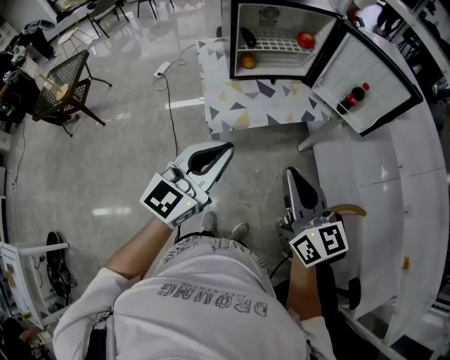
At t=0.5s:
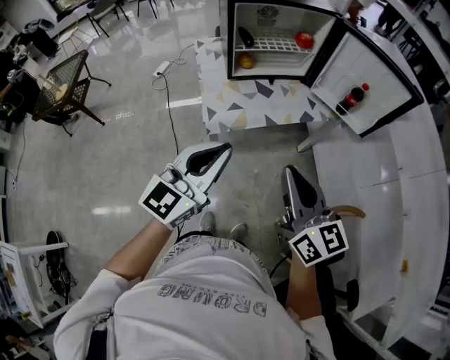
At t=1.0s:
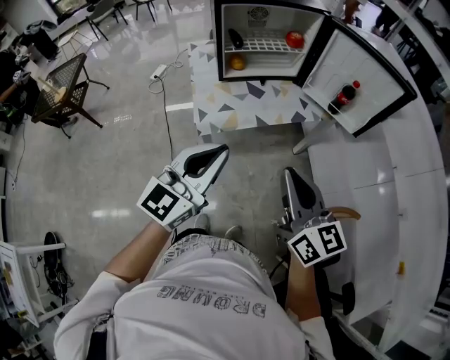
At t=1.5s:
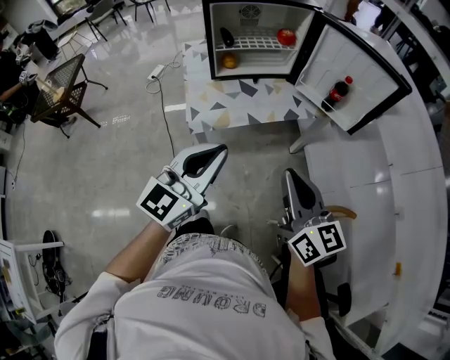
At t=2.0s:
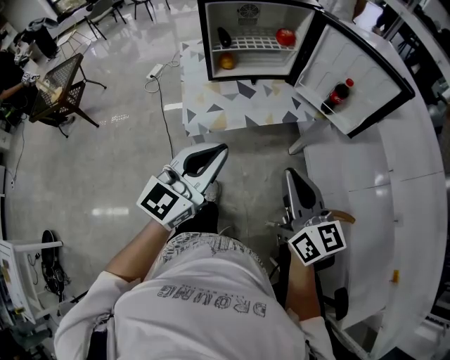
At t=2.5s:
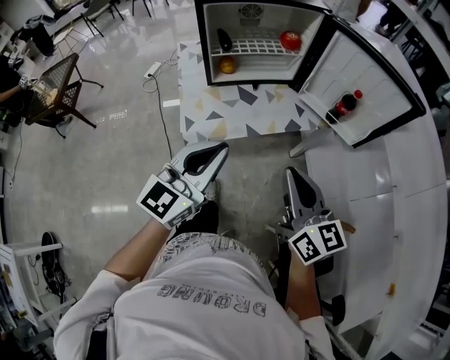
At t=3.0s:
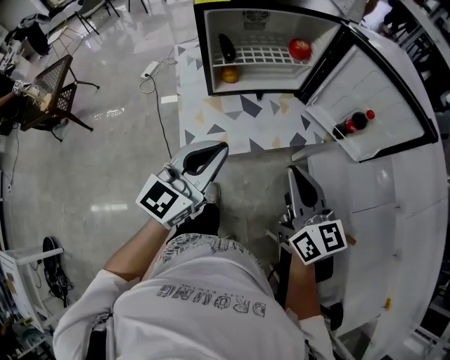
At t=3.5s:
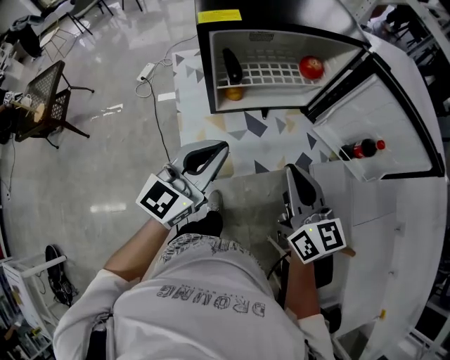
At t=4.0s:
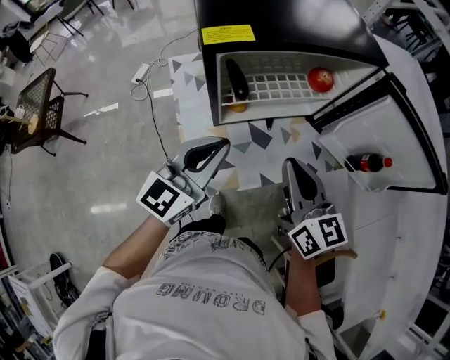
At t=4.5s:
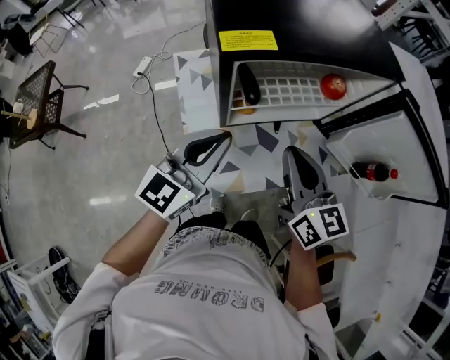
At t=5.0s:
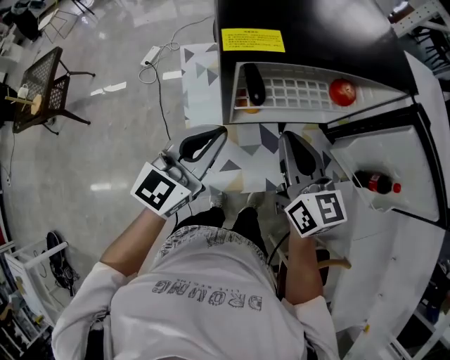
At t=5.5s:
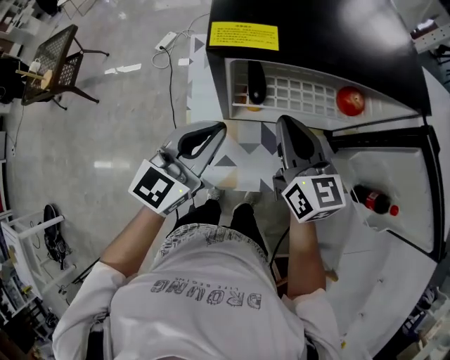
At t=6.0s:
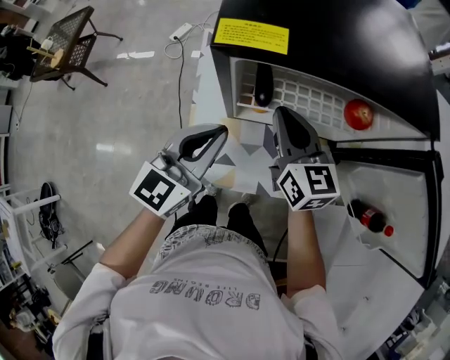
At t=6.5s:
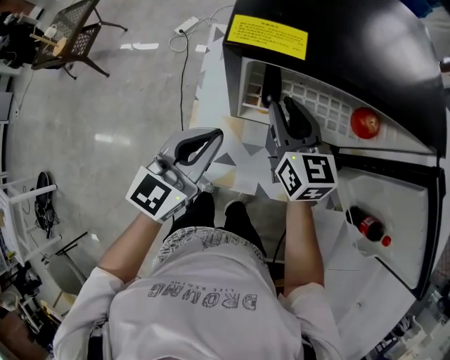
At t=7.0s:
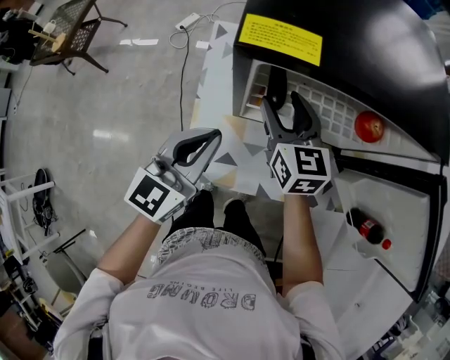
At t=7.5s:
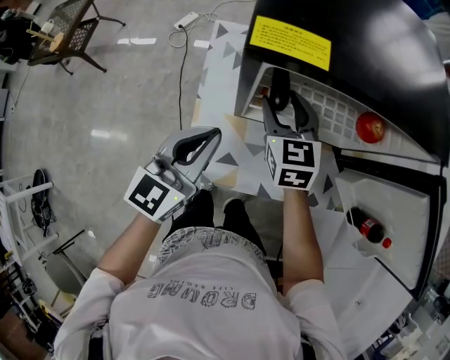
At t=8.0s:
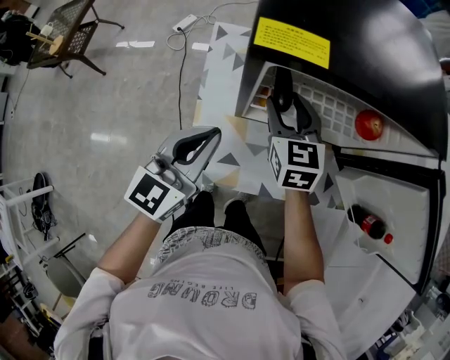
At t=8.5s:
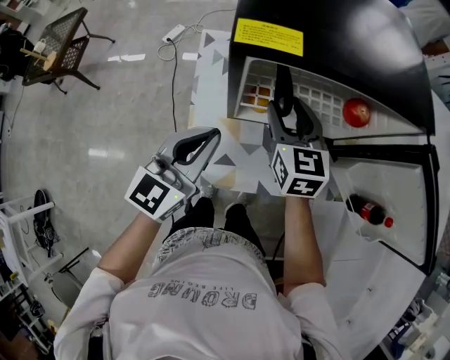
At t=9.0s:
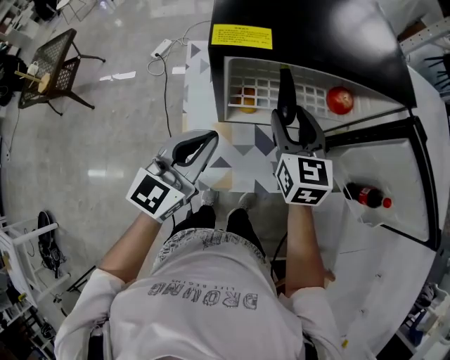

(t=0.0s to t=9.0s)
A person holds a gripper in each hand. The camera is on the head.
t=0.0s - t=2.0s: The two grippers go roughly 10 cm to the right.
t=2.0s - t=4.5s: The two grippers go roughly 40 cm forward and to the left.
t=4.5s - t=7.0s: The right gripper goes about 20 cm forward, downward and to the left, turns by about 20 degrees, and opens up, while the left gripper shifts some 5 cm downward, and changes its angle by roughly 20 degrees.
t=7.0s - t=9.0s: The right gripper goes roughly 5 cm to the right.

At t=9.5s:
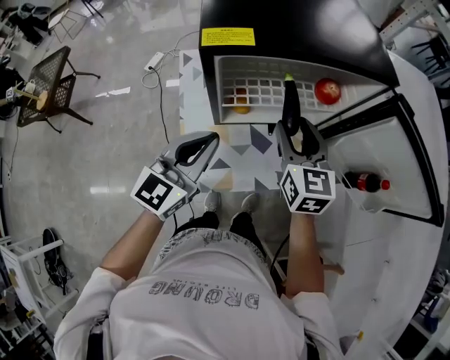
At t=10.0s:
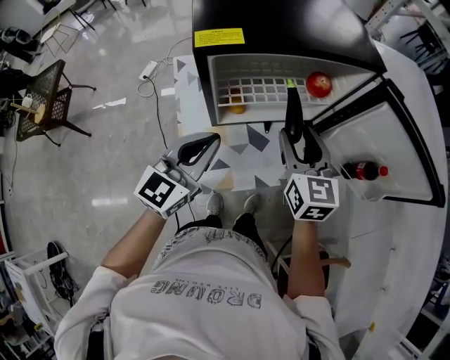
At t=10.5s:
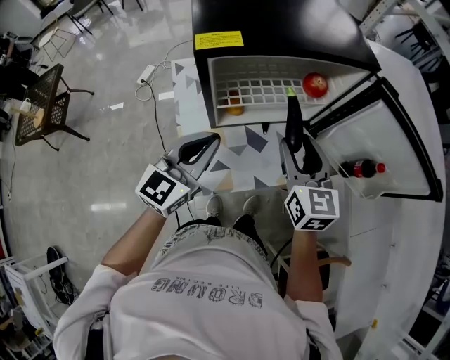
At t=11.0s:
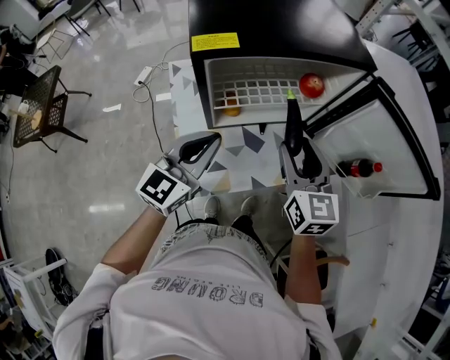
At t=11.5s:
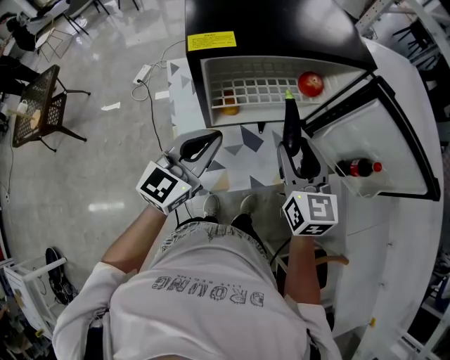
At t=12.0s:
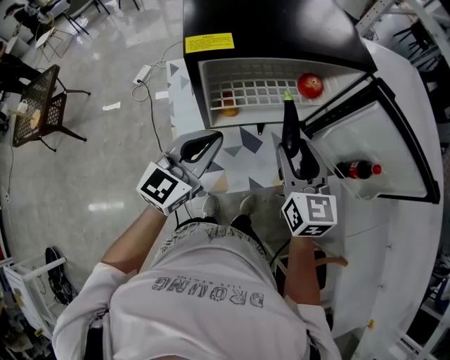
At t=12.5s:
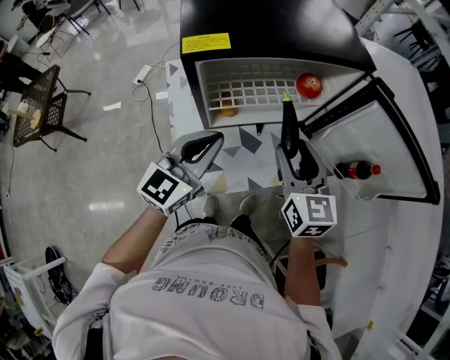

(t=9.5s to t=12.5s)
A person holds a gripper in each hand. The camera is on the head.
t=9.5s - t=11.0s: The right gripper moves backward, roughly 5 cm.
t=11.0s - t=12.5s: The grippers make only small movements.

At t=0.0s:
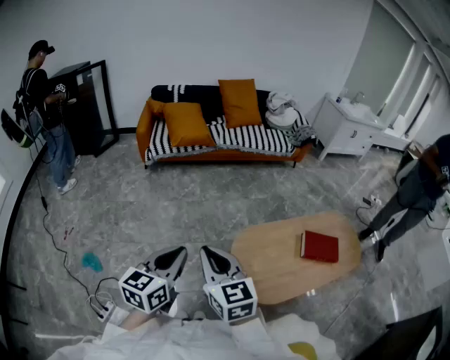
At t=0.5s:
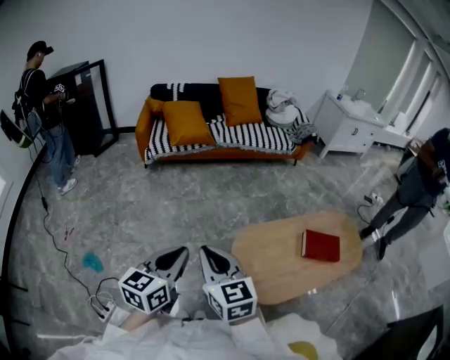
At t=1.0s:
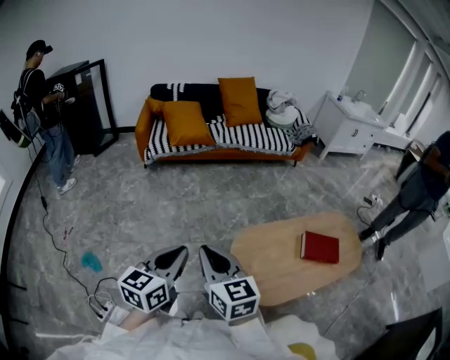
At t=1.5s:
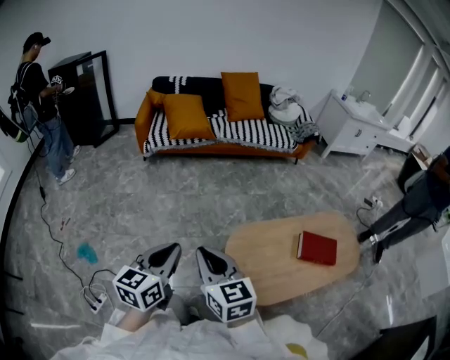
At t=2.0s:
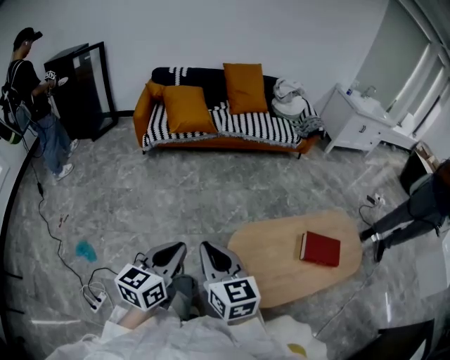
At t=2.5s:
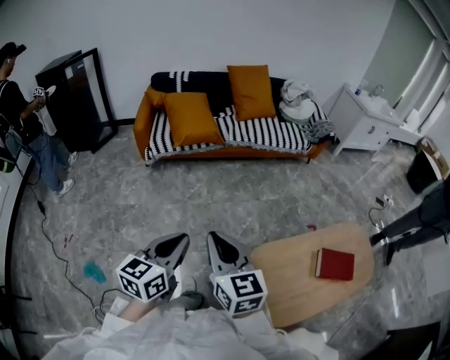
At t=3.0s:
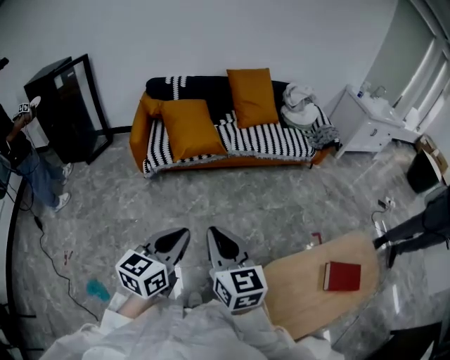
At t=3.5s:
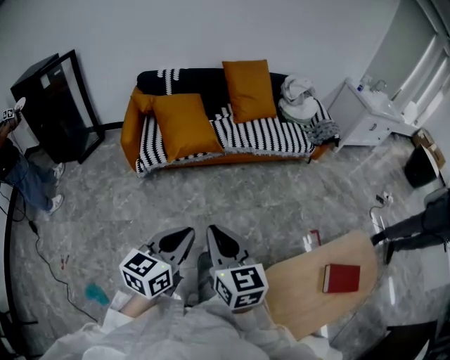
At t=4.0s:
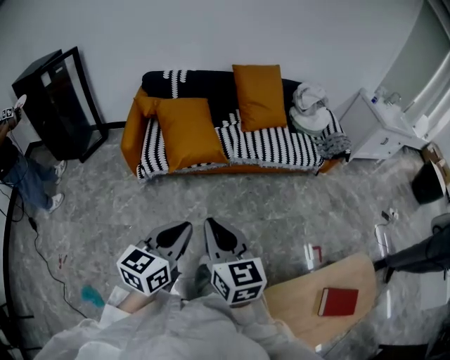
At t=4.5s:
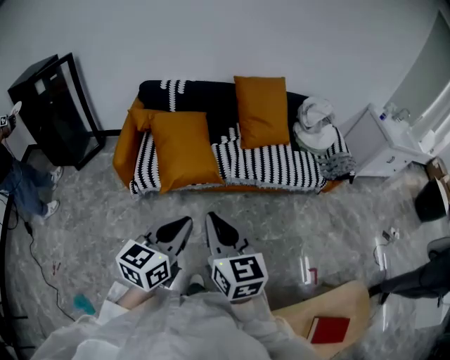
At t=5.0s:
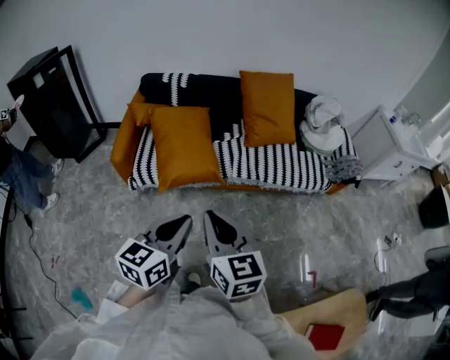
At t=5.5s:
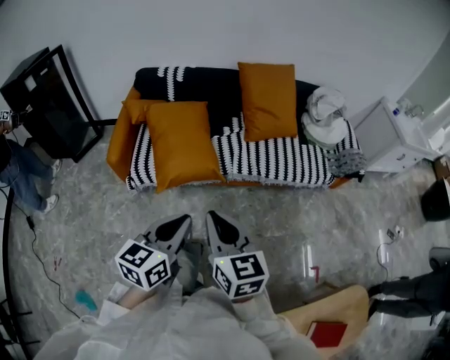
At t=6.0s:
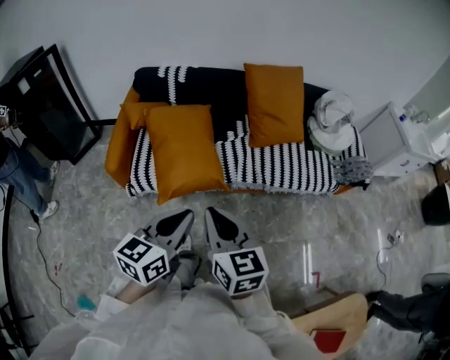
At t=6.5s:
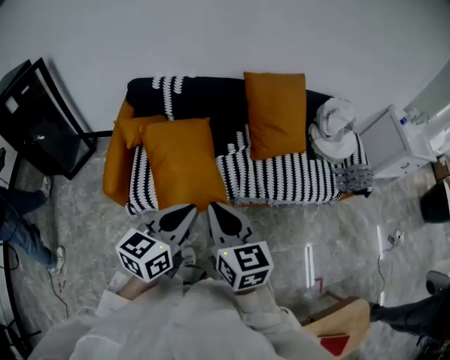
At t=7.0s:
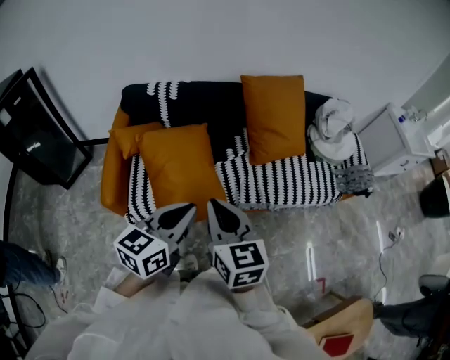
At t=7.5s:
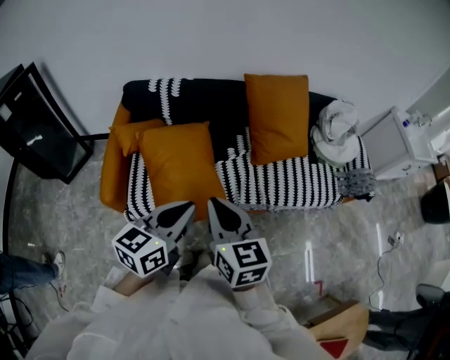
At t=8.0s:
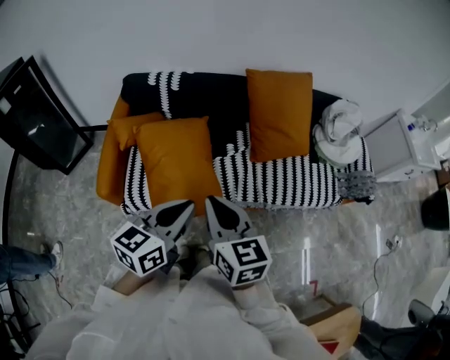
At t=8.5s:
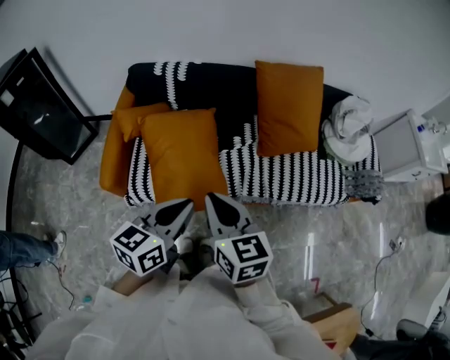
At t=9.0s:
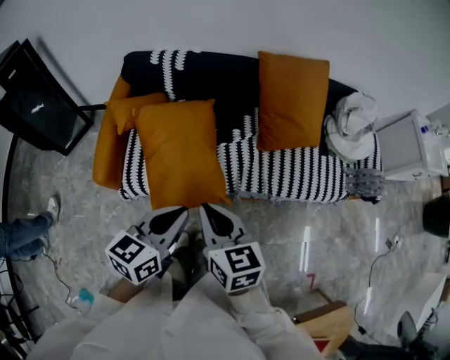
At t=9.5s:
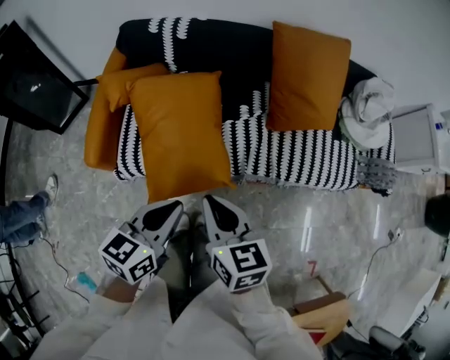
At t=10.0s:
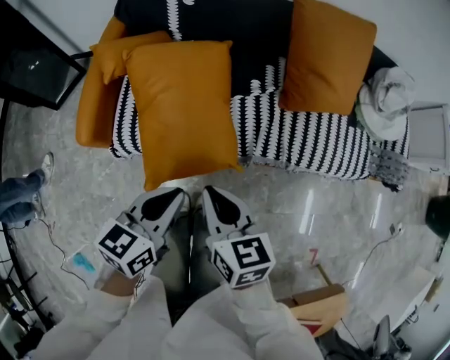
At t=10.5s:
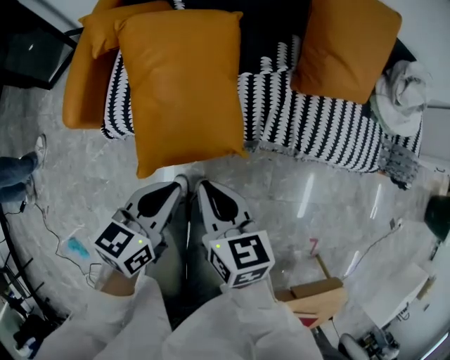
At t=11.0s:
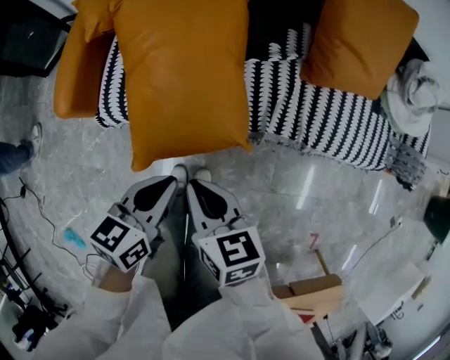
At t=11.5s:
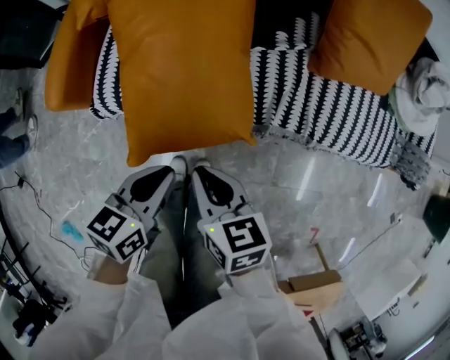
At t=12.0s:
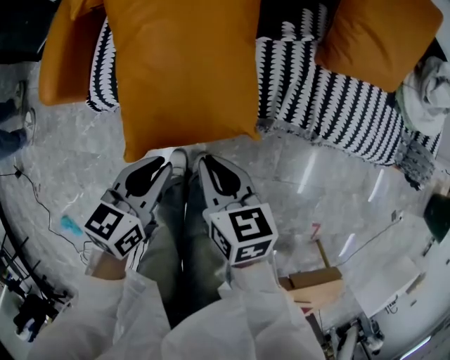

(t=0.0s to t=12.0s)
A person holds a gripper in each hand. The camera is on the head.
t=0.0s - t=2.0s: The grippers both shift forward by some 5 cm.
t=2.0s - t=4.0s: The two grippers travel together, forward, some 50 cm.
t=4.0s - t=6.0s: Both grippers move forward, approximately 30 cm.
t=6.0s - t=8.0s: The grippers both shift forward by some 20 cm.
t=8.0s - t=10.0s: Both grippers travel together downward, roughly 20 cm.
t=10.0s - t=12.0s: Both grippers move downward, some 20 cm.

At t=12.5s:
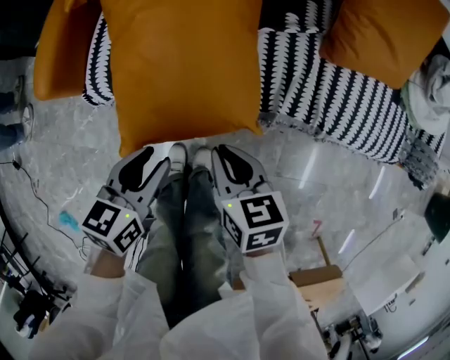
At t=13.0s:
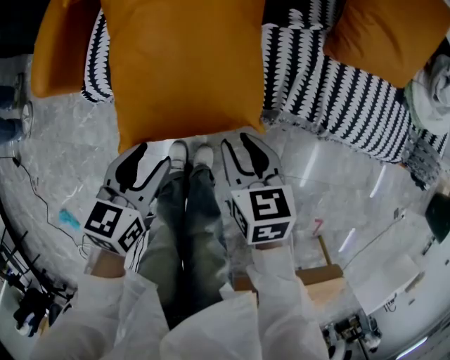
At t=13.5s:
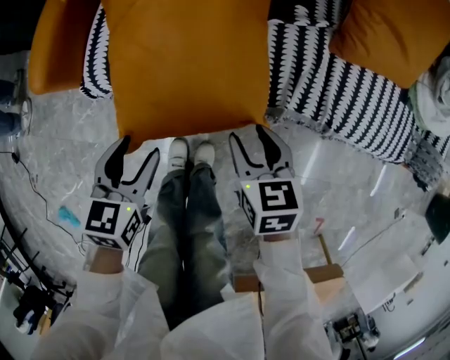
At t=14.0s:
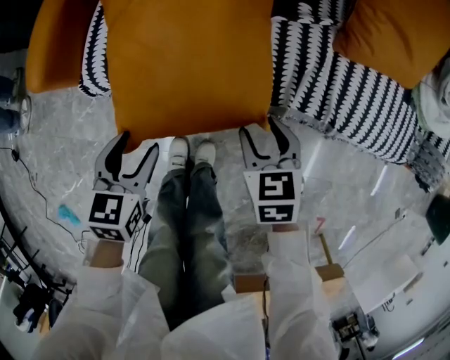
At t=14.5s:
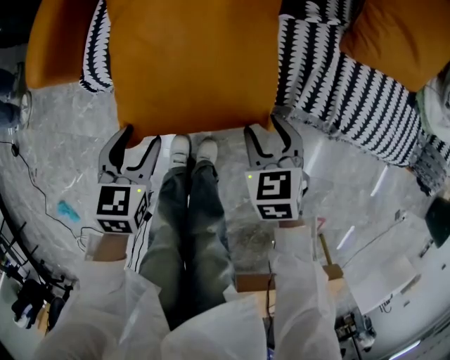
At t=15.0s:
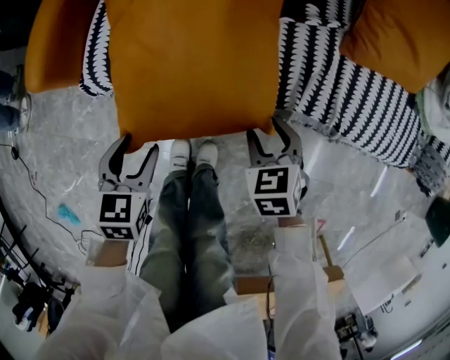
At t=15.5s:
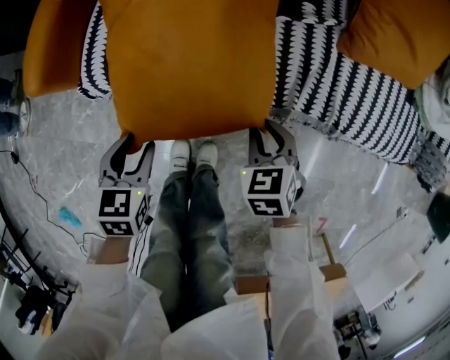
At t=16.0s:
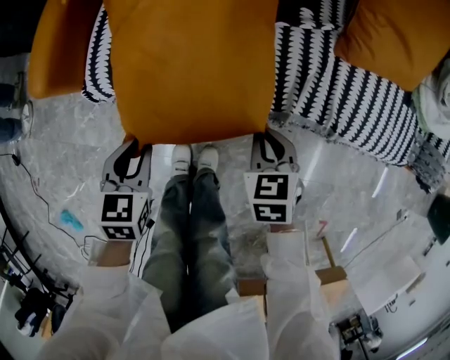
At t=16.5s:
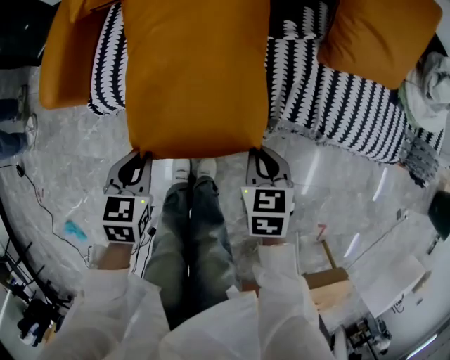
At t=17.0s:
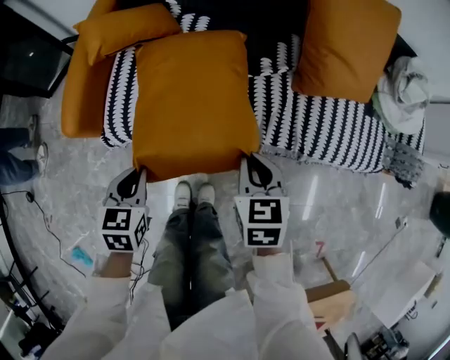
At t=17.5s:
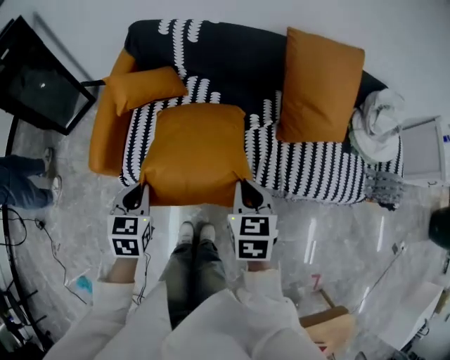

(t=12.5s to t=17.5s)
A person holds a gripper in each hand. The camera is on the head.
t=12.5s - t=15.0s: The left gripper goes approximately 10 cm downward and to the left, rotates some 30 degrees, and opens. The right gripper is displaced downward and to the right by some 15 cm, rotates roughly 30 degrees, and opens.
t=15.0s - t=17.5s: Both grippers travel together upward, roughly 25 cm. The left gripper closes its fingers. The right gripper turns by about 30 degrees, and closes.
